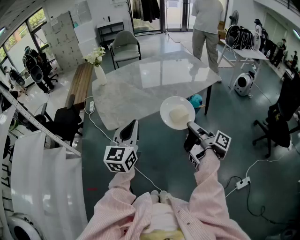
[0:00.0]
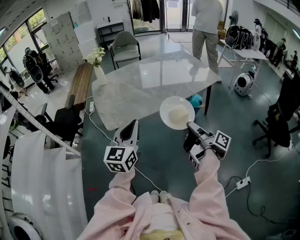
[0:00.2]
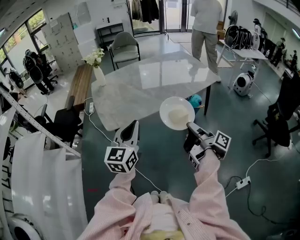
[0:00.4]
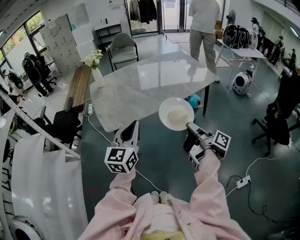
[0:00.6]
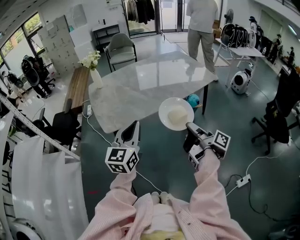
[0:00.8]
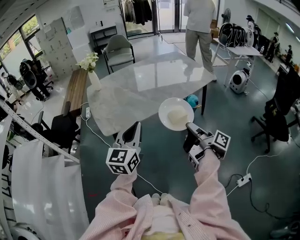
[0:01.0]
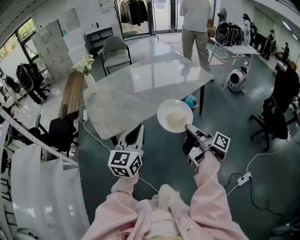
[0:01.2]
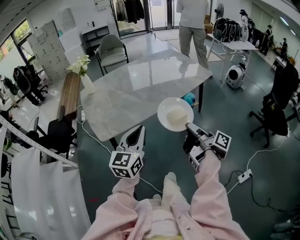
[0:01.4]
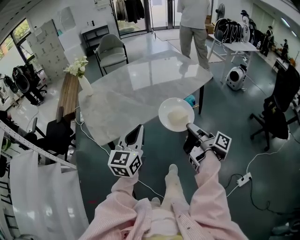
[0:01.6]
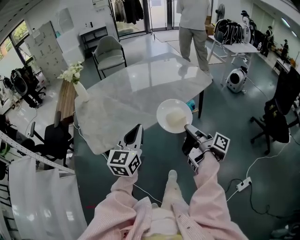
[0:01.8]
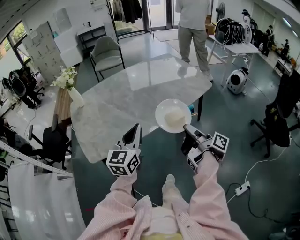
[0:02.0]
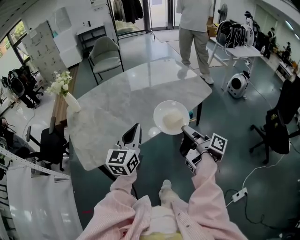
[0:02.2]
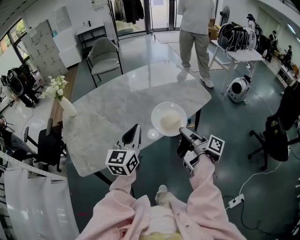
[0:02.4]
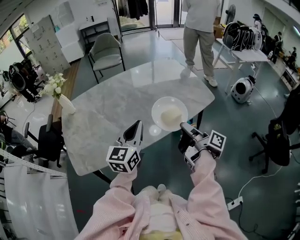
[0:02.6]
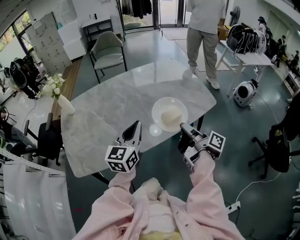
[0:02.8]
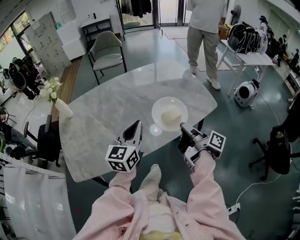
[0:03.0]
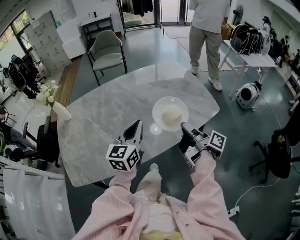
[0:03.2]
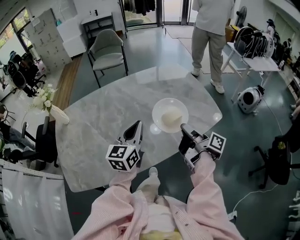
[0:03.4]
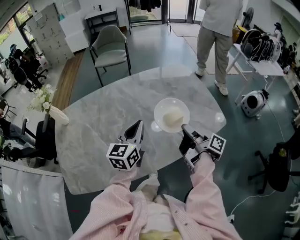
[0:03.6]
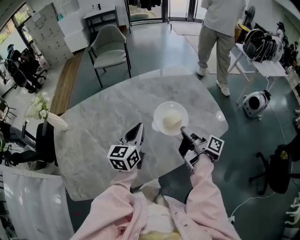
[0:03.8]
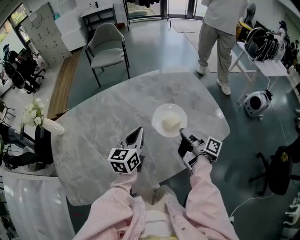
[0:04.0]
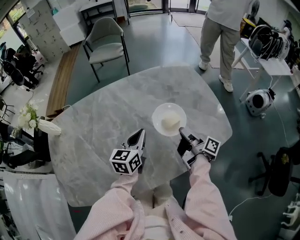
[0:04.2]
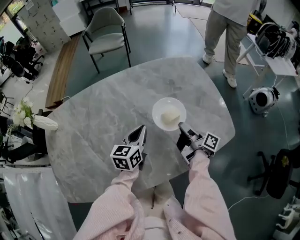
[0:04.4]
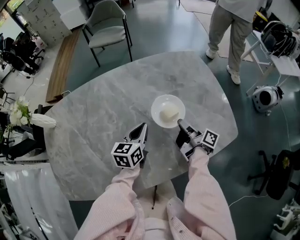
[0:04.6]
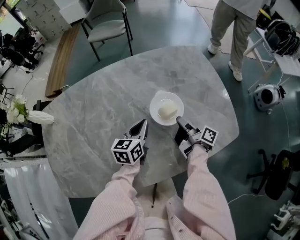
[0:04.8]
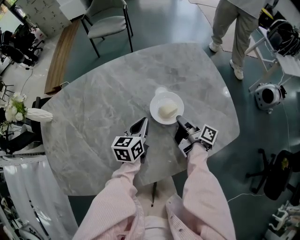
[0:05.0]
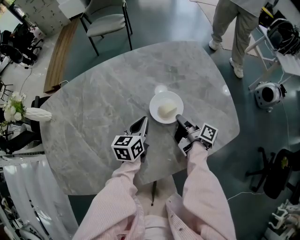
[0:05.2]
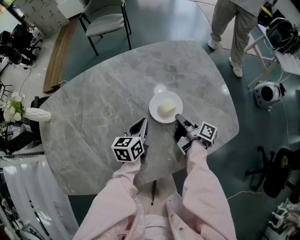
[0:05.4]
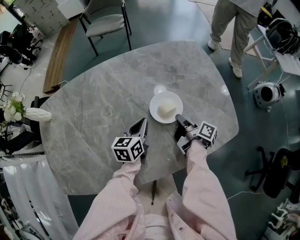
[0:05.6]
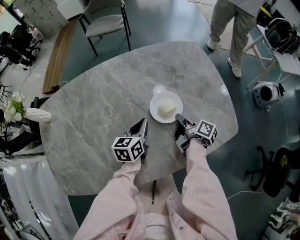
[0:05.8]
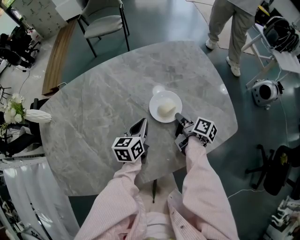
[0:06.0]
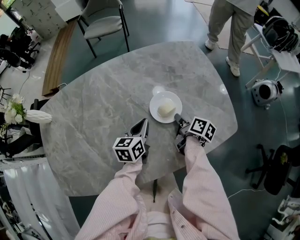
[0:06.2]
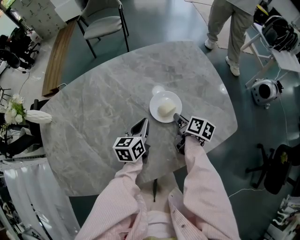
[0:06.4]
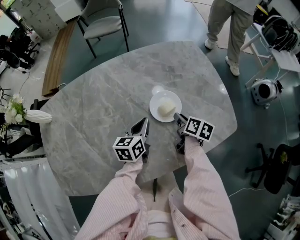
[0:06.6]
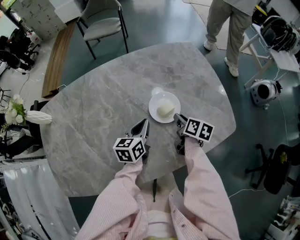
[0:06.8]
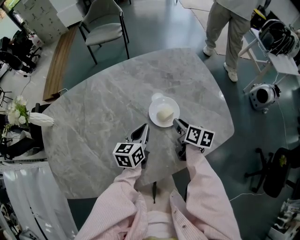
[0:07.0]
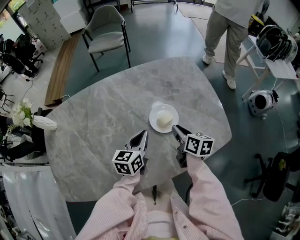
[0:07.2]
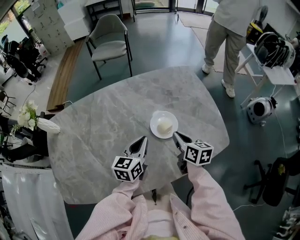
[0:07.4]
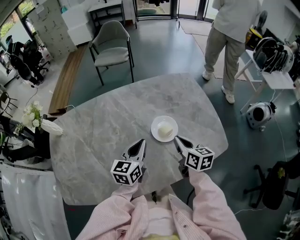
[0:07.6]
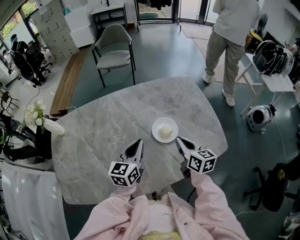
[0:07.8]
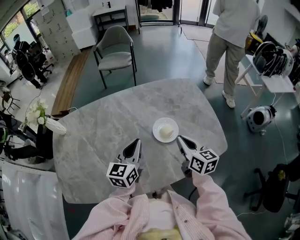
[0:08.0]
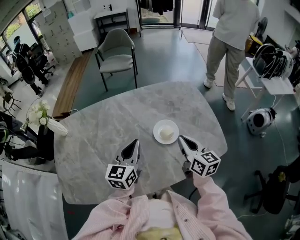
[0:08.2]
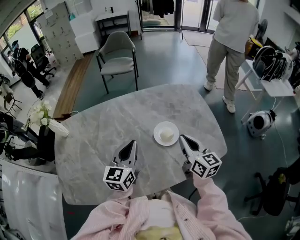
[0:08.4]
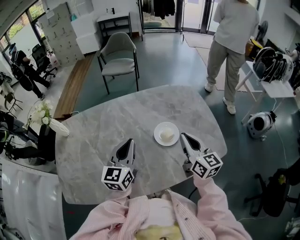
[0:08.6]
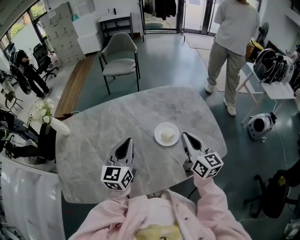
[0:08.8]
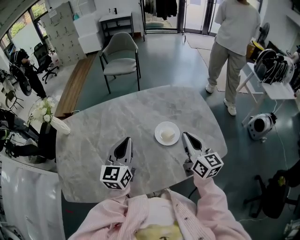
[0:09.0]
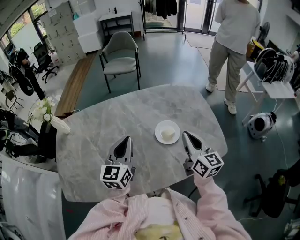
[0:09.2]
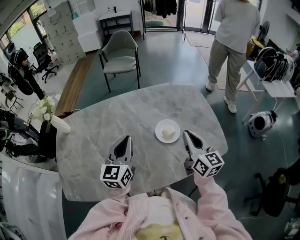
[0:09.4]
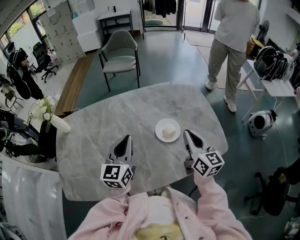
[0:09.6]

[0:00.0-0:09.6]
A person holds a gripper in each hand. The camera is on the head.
0:00.0 to 0:01.6: The left gripper shifts by about 10 cm.
0:01.6 to 0:03.2: The left gripper changes place by approximately 40 cm.
0:03.2 to 0:04.8: The left gripper shifts by some 30 cm, and swivels approximately 30 degrees.
0:06.4 to 0:08.0: The left gripper moves upward, some 15 cm, and rotates approximately 20 degrees.
0:08.0 to 0:09.6: The left gripper goes some 5 cm upward.

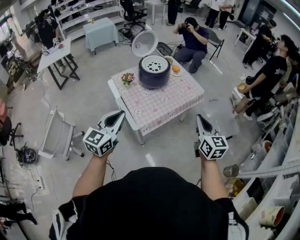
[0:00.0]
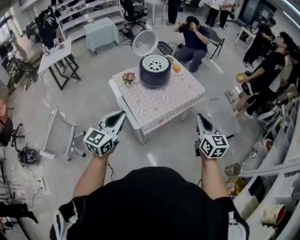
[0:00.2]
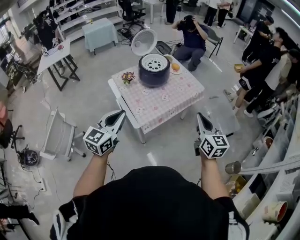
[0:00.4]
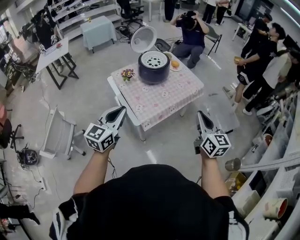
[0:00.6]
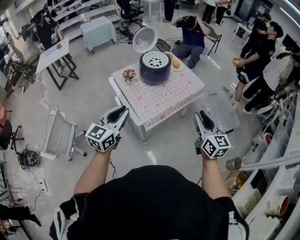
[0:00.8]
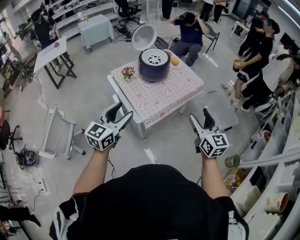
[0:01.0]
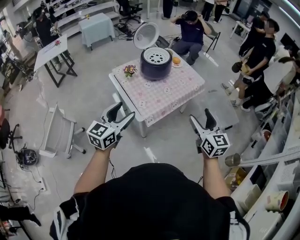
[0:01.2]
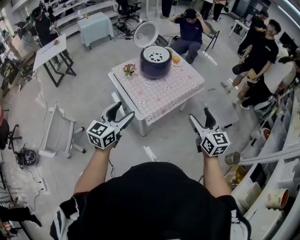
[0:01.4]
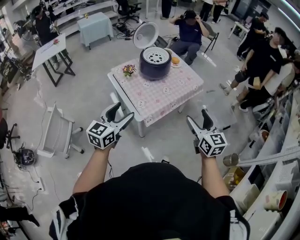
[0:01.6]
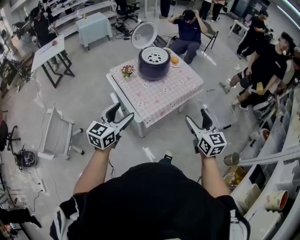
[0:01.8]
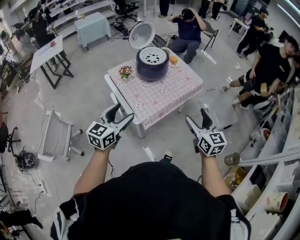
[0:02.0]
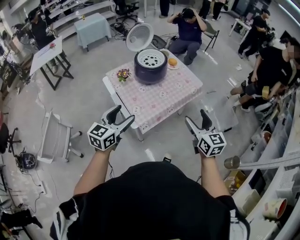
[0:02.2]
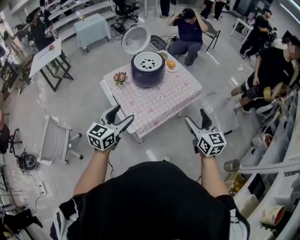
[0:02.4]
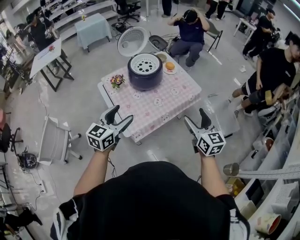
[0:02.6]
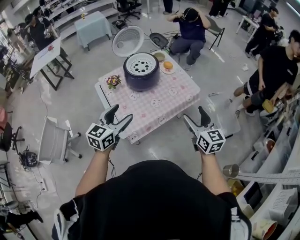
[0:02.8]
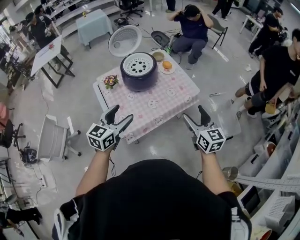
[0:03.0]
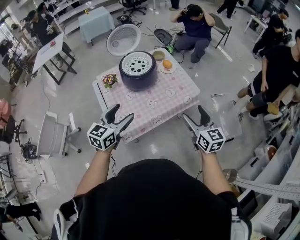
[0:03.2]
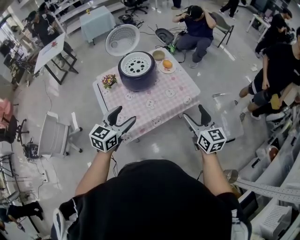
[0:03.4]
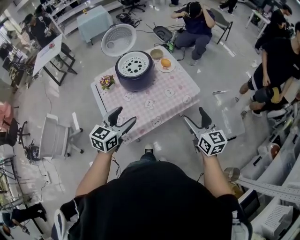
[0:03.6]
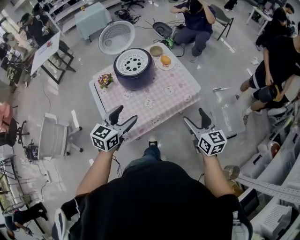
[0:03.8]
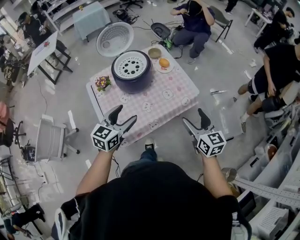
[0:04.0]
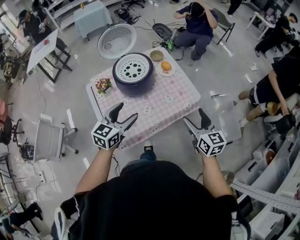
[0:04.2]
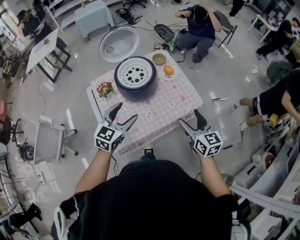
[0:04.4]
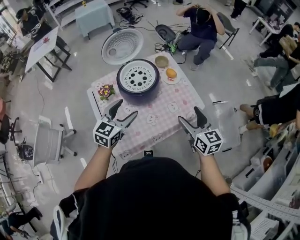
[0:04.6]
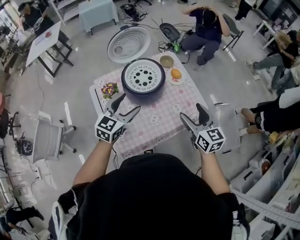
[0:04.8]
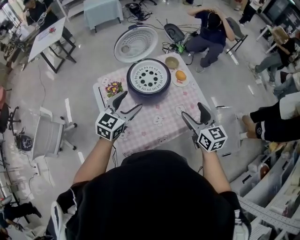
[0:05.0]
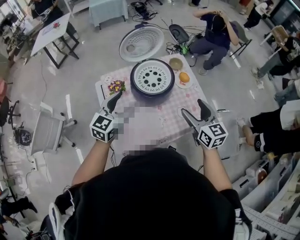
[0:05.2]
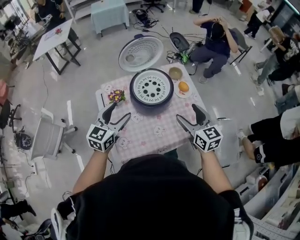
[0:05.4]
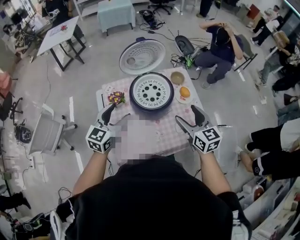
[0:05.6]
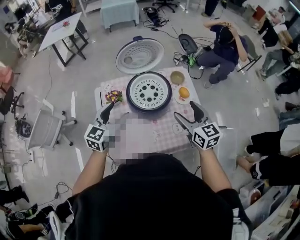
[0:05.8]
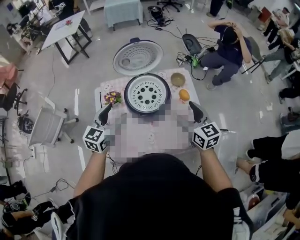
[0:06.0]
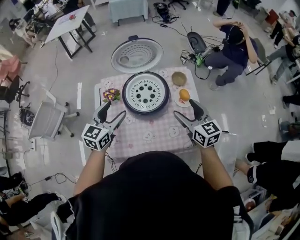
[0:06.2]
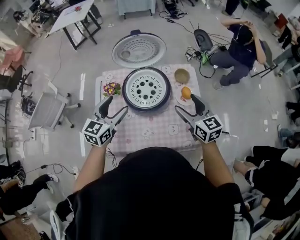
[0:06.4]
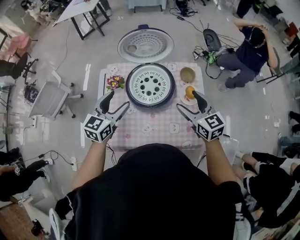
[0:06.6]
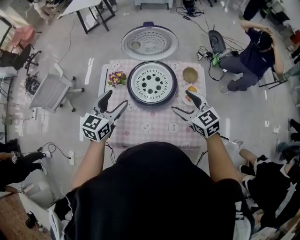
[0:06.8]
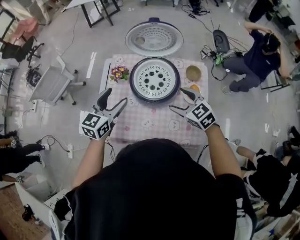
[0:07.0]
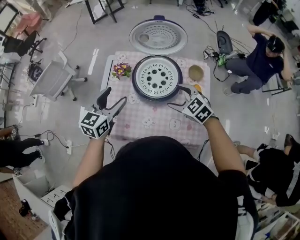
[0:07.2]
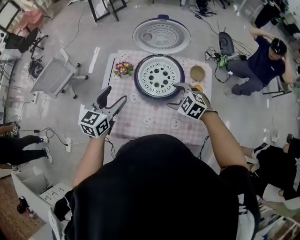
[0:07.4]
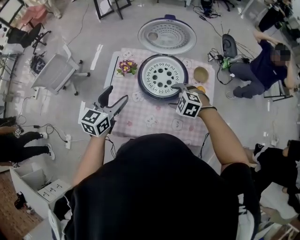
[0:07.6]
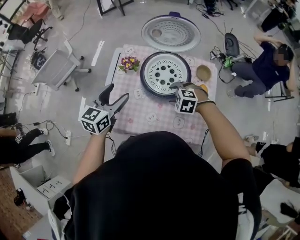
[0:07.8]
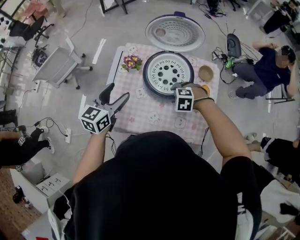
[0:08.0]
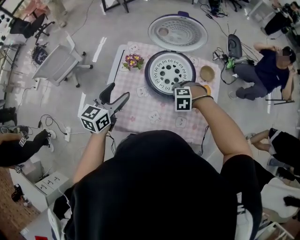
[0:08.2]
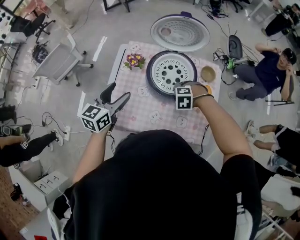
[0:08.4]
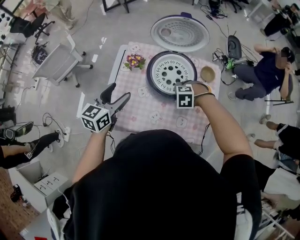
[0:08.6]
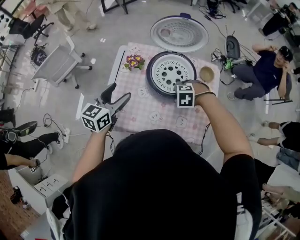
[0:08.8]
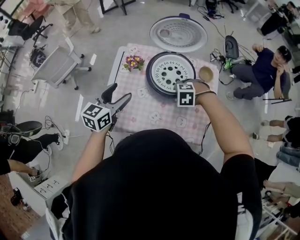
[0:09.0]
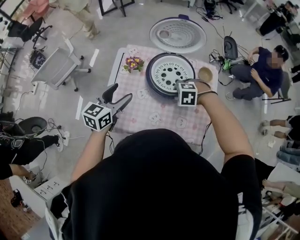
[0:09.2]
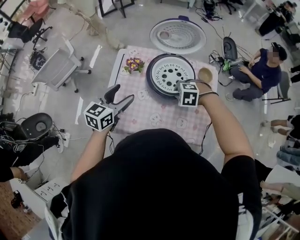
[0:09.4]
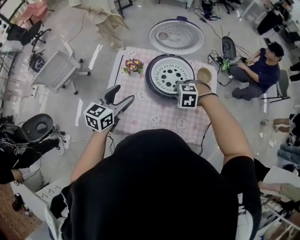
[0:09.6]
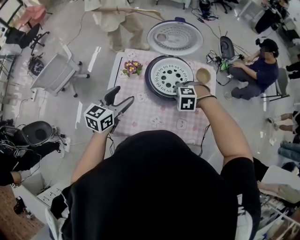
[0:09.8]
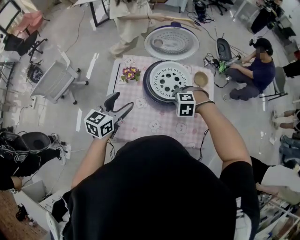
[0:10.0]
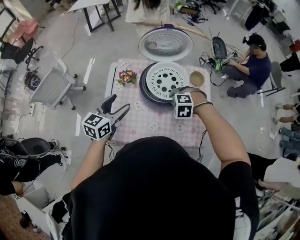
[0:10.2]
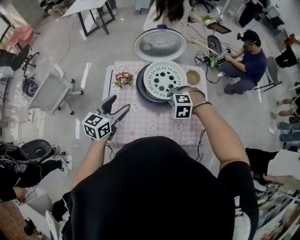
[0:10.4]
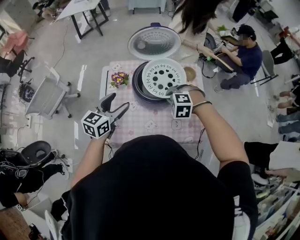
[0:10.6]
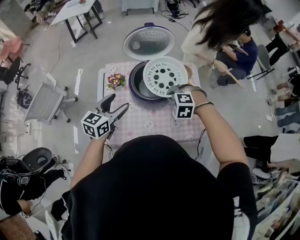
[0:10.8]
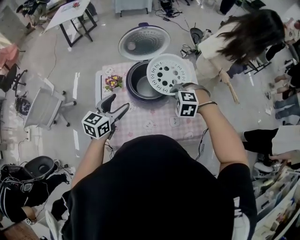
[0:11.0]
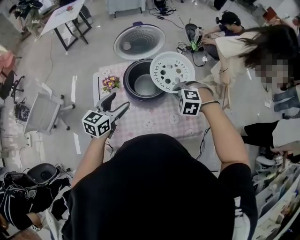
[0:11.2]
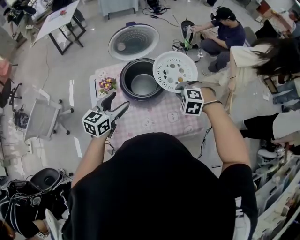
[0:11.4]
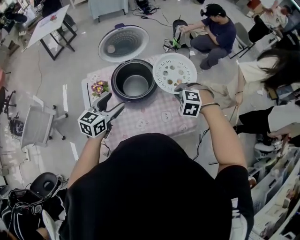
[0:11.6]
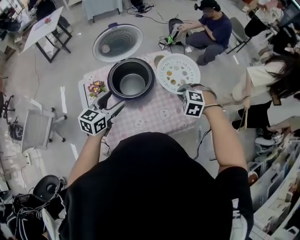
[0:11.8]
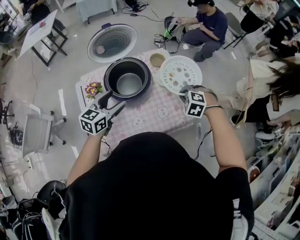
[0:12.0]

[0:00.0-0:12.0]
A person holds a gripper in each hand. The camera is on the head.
0:00.0 to 0:01.6: The right gripper shifts roughly 10 cm backward and to the left, and opens up, while the left gripper shifts by approximately 5 cm, and opens its fingers.
0:01.6 to 0:03.0: The grippers both shift forward and to the right by approximately 25 cm.
0:03.0 to 0:04.4: The two grippers go about 15 cm forward.
0:04.4 to 0:06.0: The right gripper moves forward, approximately 25 cm, and swivels about 20 degrees. The left gripper moves forward and to the left, approximately 15 cm, and rotates roughly 20 degrees.
0:06.0 to 0:07.6: The right gripper is displaced downward by approximately 15 cm, and points its fingers some 40 degrees further downward. The left gripper moves approximately 5 cm, and swivels some 20 degrees.
0:07.6 to 0:09.0: The right gripper rotates approximately 30 degrees, and closes up.
0:09.0 to 0:10.4: The right gripper closes up.
0:10.4 to 0:12.0: The left gripper moves approximately 10 cm, and changes its angle by about 20 degrees; the right gripper ends up roughly 20 cm from where it was, and changes its angle by roughly 30 degrees.

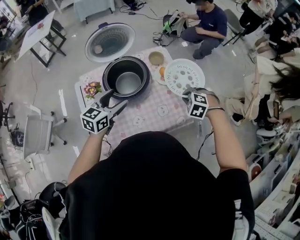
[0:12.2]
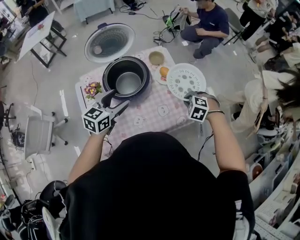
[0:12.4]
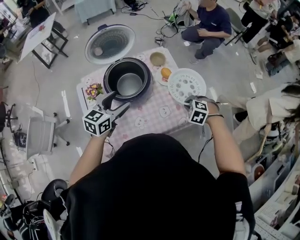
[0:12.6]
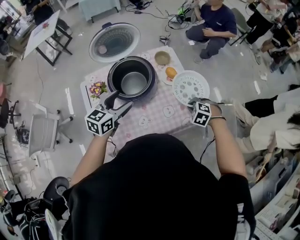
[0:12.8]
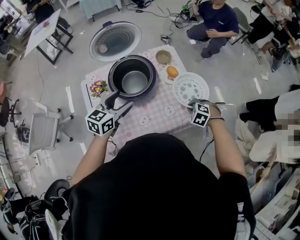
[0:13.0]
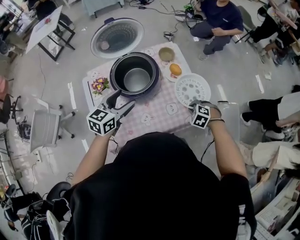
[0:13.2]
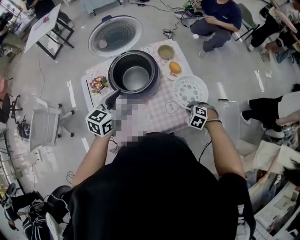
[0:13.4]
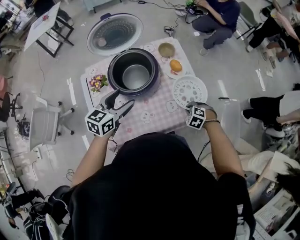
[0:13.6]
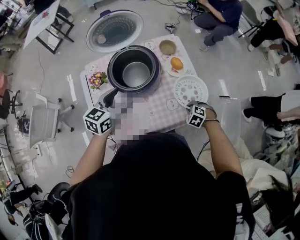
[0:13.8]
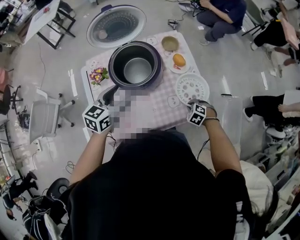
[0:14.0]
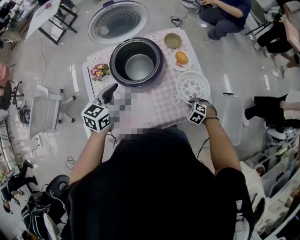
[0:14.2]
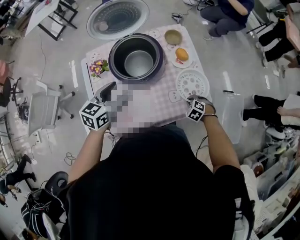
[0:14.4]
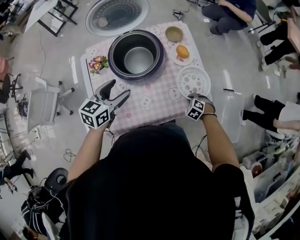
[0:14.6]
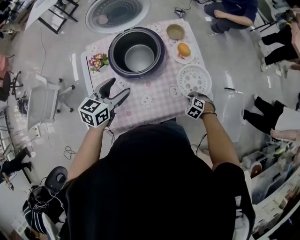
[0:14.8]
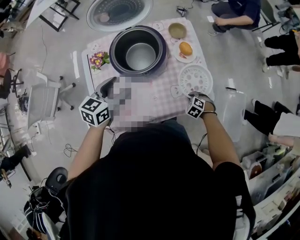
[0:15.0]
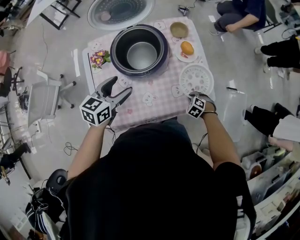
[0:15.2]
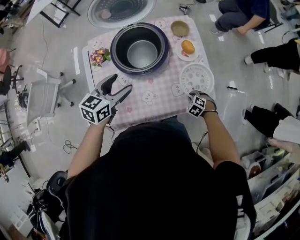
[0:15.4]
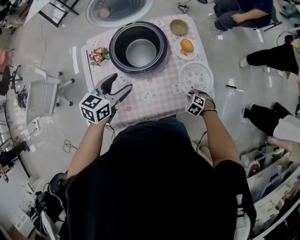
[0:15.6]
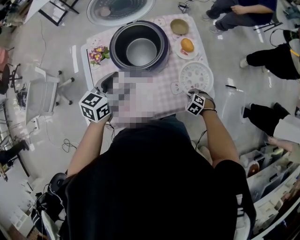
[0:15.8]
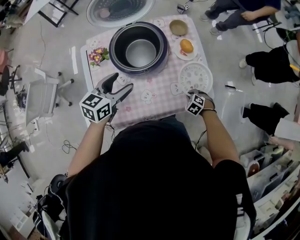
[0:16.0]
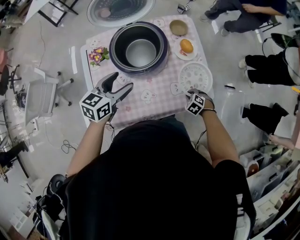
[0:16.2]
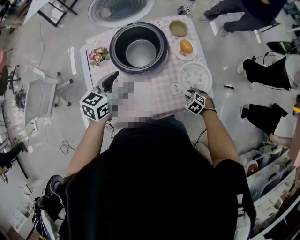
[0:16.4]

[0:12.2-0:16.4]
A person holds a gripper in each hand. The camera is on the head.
0:12.2 to 0:13.6: The right gripper is displaced downward by approximately 15 cm.
0:13.6 to 0:15.0: The right gripper goes some 10 cm downward.
0:15.0 to 0:16.4: The grippers make only small movements.
